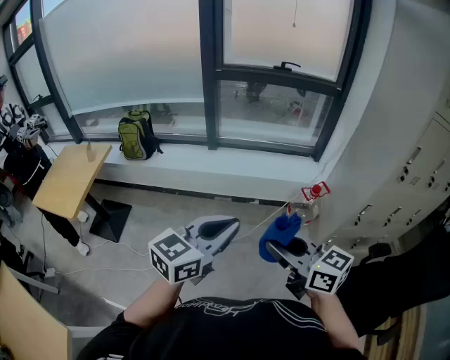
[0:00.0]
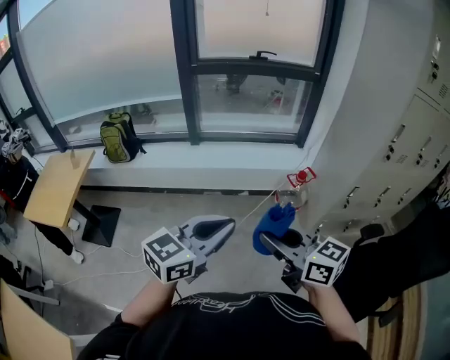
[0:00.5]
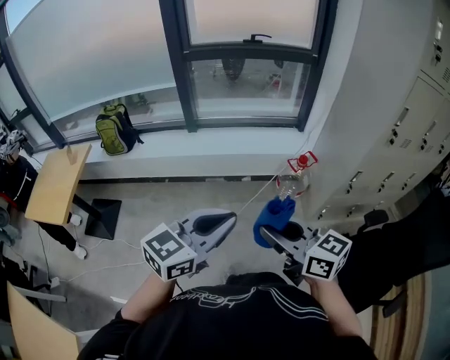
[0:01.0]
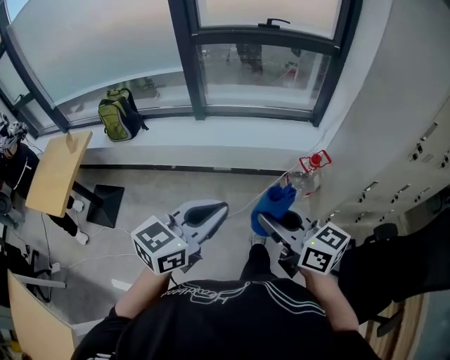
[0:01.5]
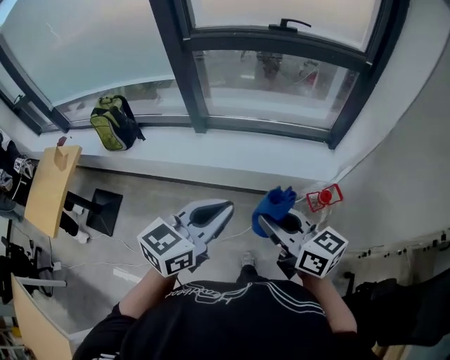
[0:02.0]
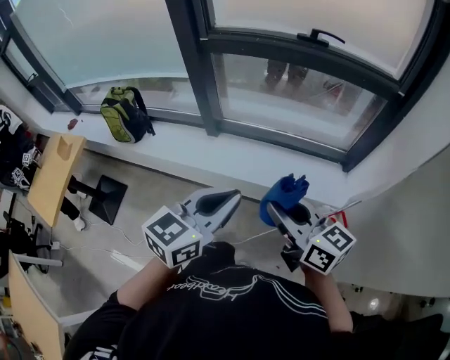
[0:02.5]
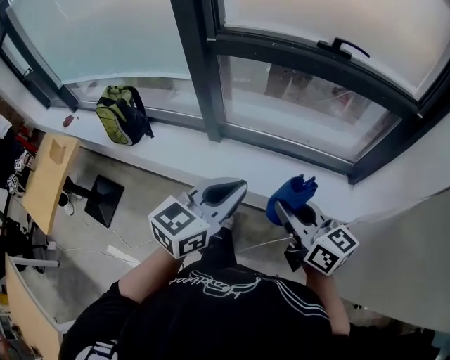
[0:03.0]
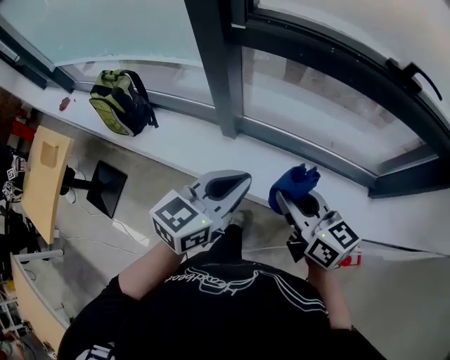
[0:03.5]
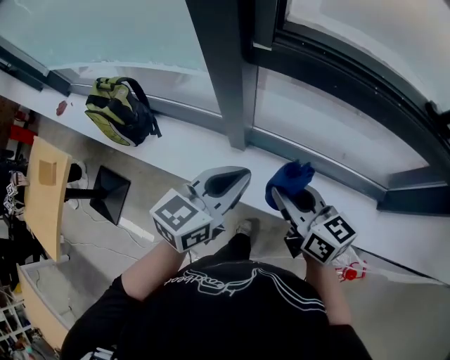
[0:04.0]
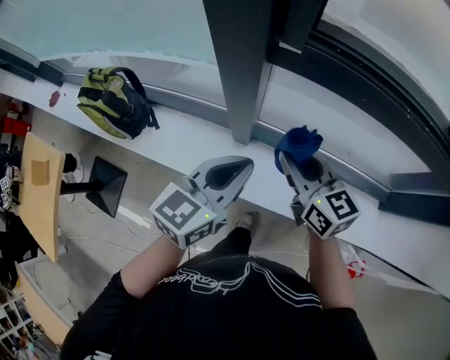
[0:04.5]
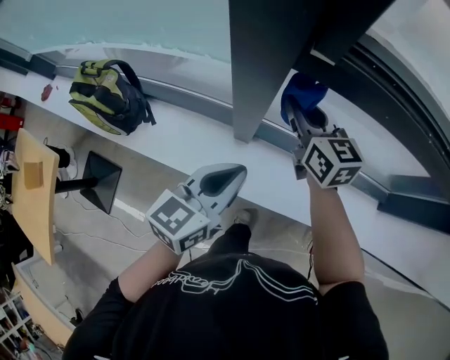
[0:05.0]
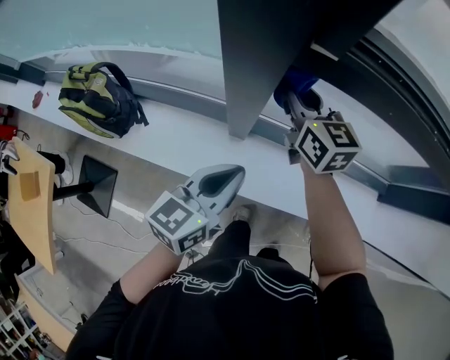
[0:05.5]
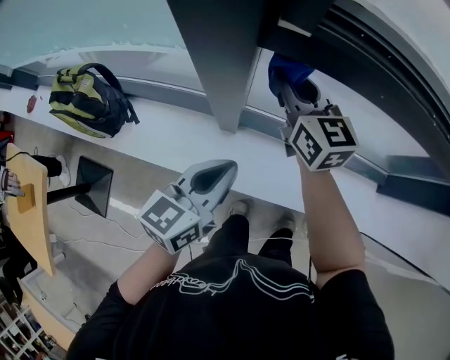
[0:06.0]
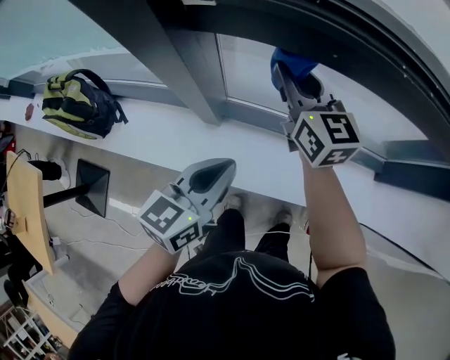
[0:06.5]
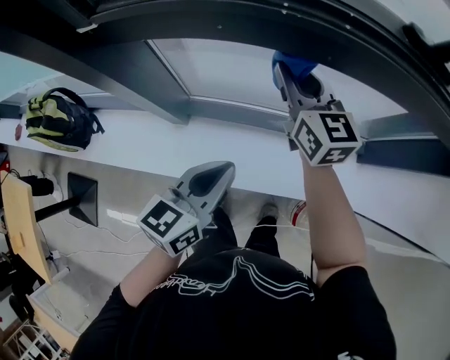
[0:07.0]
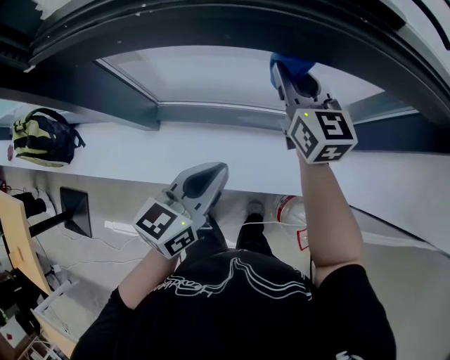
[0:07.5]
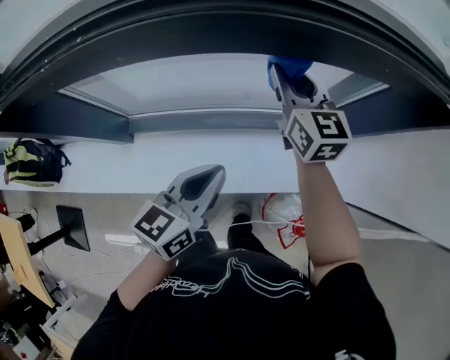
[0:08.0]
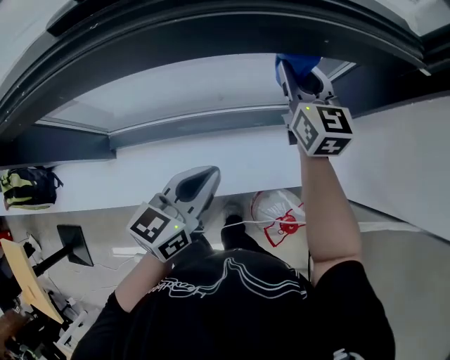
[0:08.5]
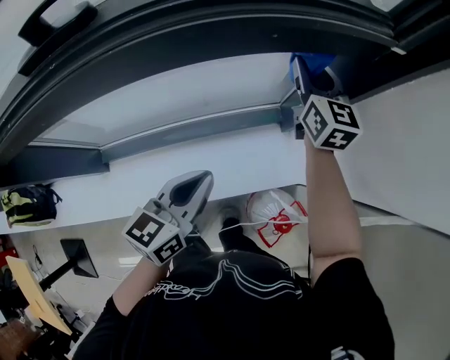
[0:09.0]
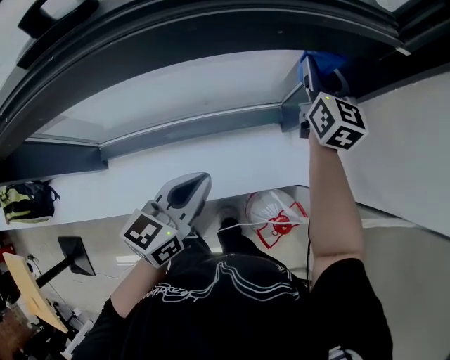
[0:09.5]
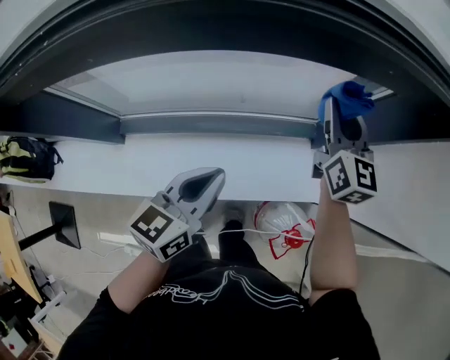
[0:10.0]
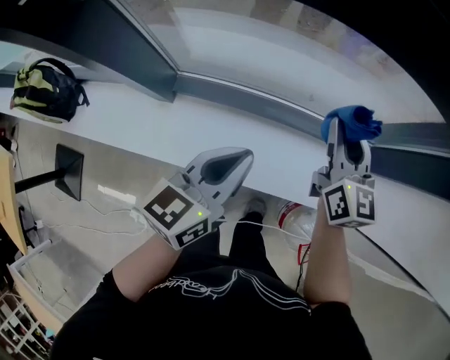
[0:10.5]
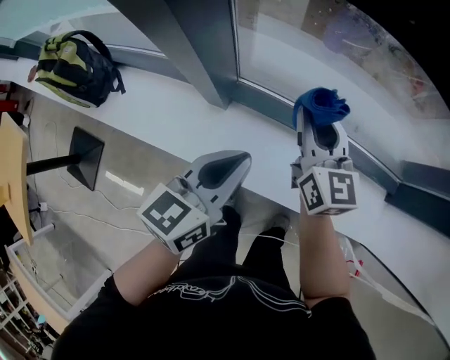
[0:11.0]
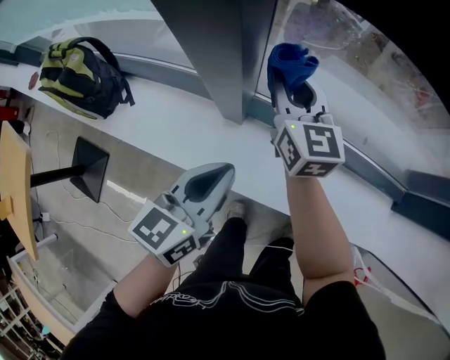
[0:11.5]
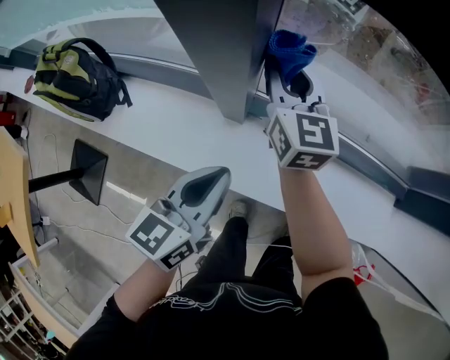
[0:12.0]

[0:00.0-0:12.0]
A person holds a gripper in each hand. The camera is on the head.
0:00.0 to 0:02.0: The grippers both shift forward by some 35 cm.
0:02.0 to 0:04.0: The pair of grippers is taken forward, some 50 cm.
0:04.0 to 0:06.0: The left gripper moves downward and forward, roughly 10 cm; the right gripper moves forward, approximately 25 cm, and swivels some 30 degrees.
0:06.0 to 0:08.0: The pair of grippers is taken to the right, some 50 cm. The right gripper swivels some 20 degrees.
0:08.0 to 0:10.0: The left gripper goes to the right and returns, some 10 cm each way, while the right gripper moves to the right, about 15 cm.
0:10.0 to 0:12.0: The pair of grippers is taken about 60 cm. The right gripper rotates some 30 degrees. Meanwhile the left gripper swivels approximately 20 degrees.

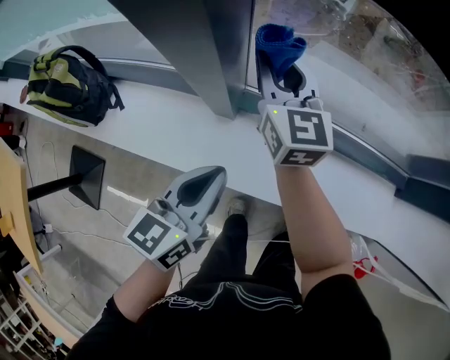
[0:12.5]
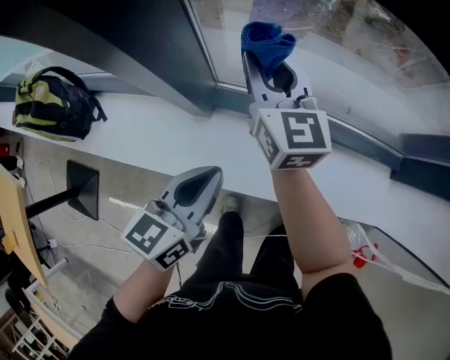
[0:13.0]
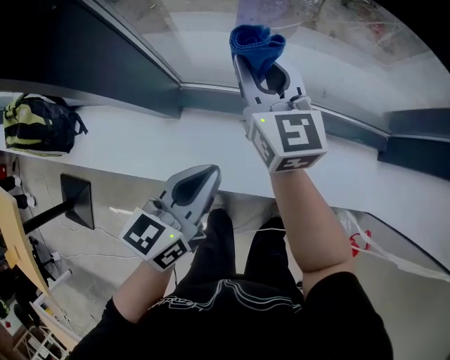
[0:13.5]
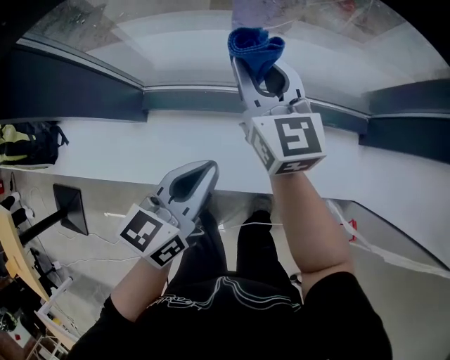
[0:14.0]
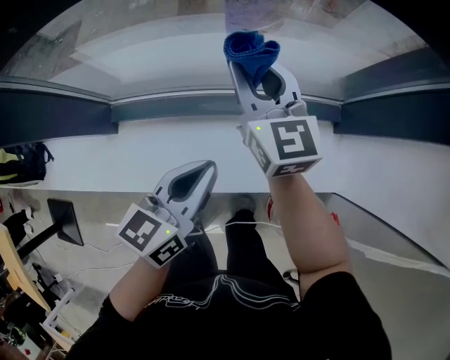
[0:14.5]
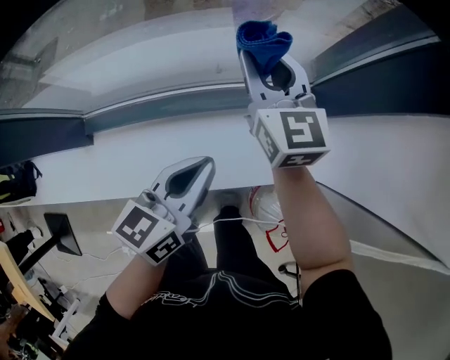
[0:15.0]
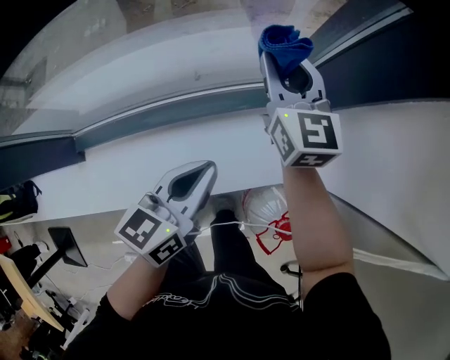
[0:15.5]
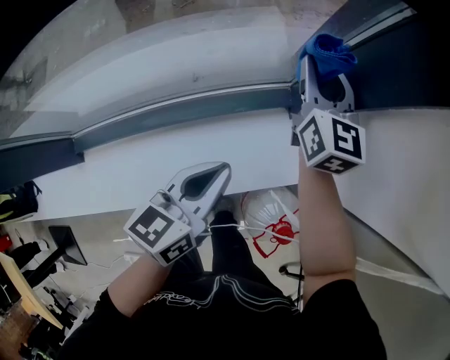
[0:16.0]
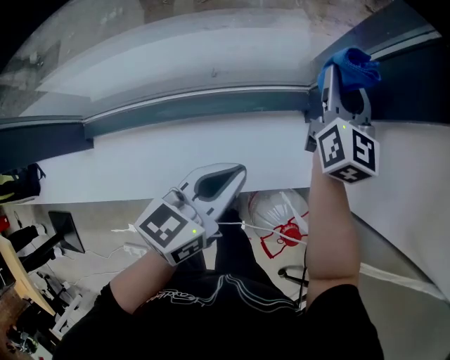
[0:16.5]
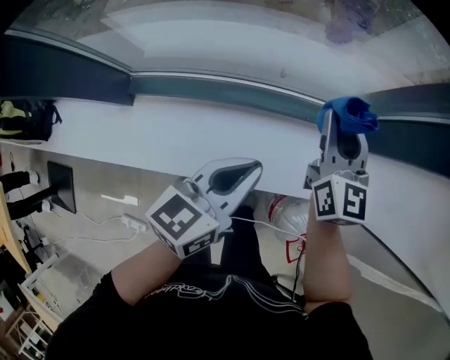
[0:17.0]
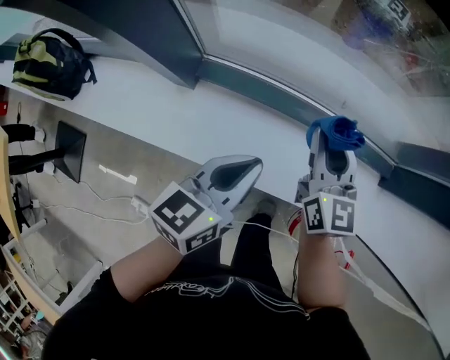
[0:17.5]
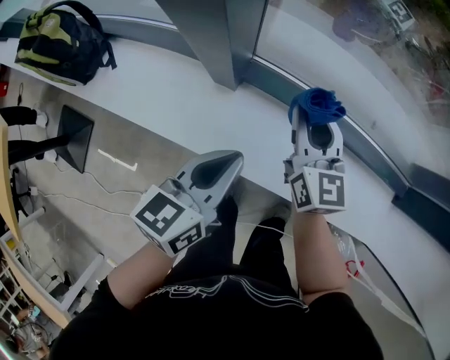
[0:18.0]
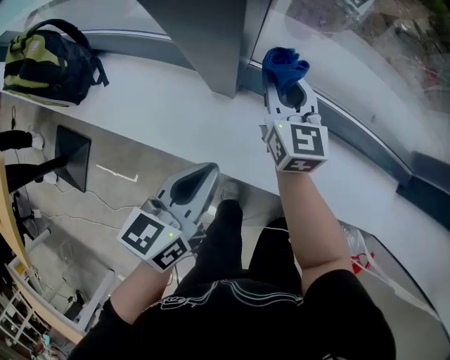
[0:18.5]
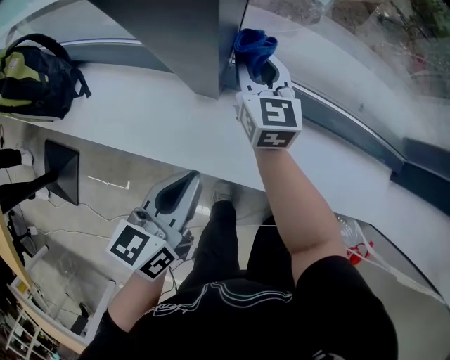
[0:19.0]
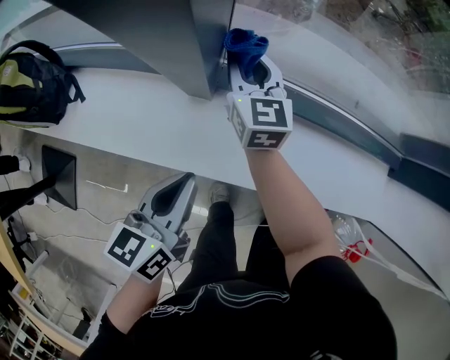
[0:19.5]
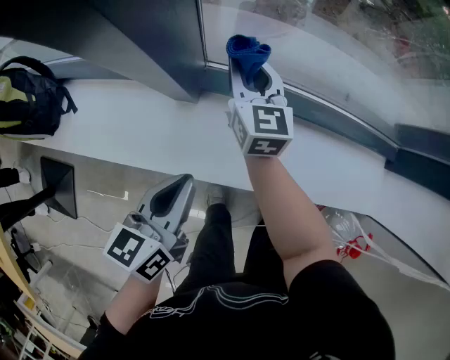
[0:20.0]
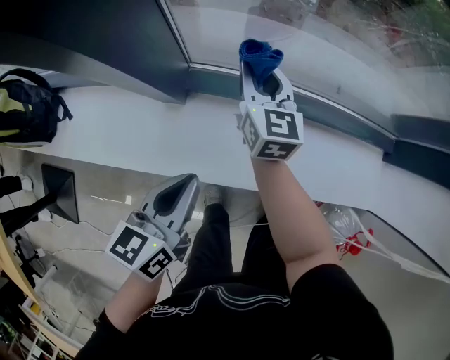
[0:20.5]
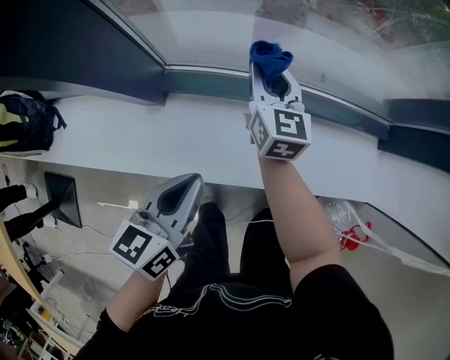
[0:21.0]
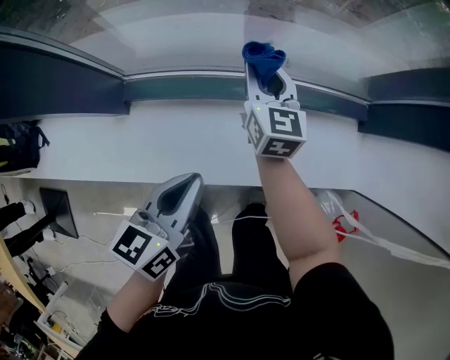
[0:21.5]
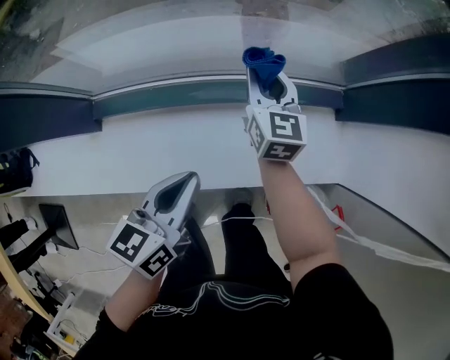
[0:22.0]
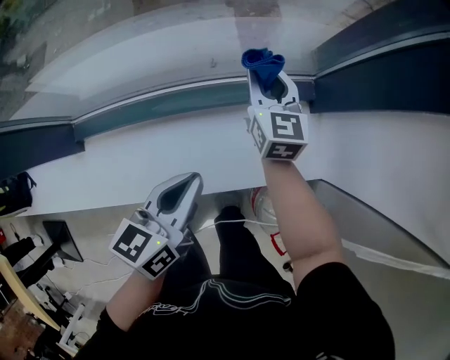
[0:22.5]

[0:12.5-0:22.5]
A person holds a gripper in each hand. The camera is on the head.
0:12.5 to 0:14.5: The two grippers go some 40 cm to the right.
0:14.5 to 0:16.5: The left gripper heads to the right, covering about 20 cm, while the right gripper is displaced to the right by about 35 cm, and swivels roughly 30 degrees.
0:16.5 to 0:18.5: The pair of grippers is taken about 70 cm. The left gripper changes its angle by about 40 degrees, while the right gripper changes its angle by roughly 40 degrees.
0:18.5 to 0:20.5: Both grippers travel together to the right, approximately 10 cm.
0:20.5 to 0:22.5: The two grippers travel together, to the right, about 50 cm.

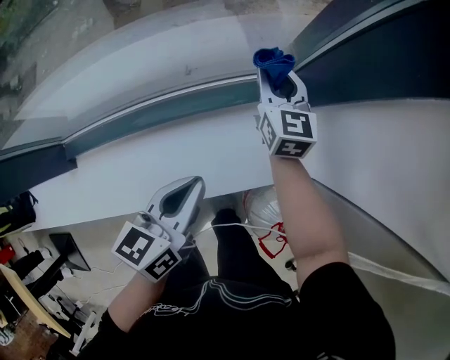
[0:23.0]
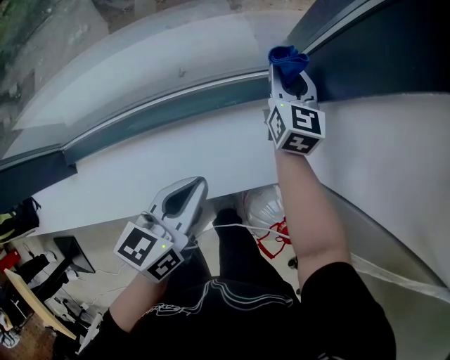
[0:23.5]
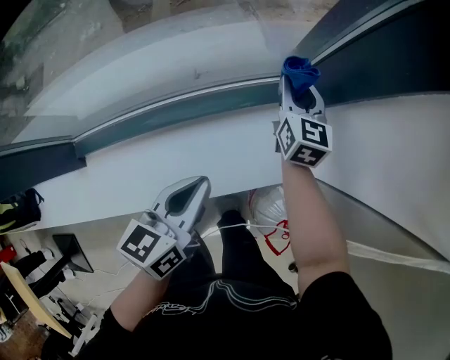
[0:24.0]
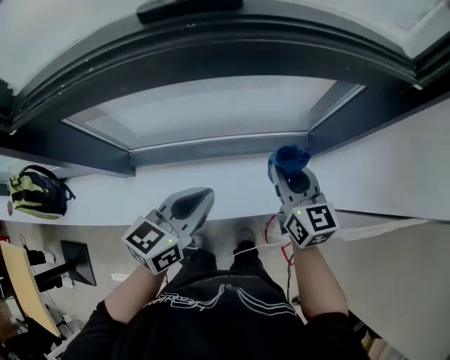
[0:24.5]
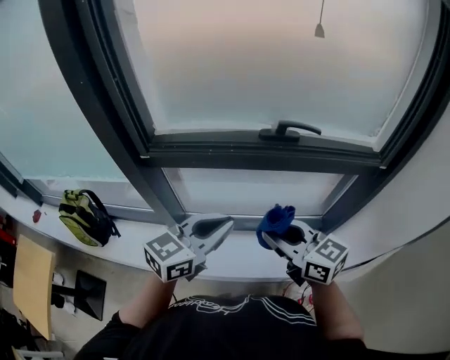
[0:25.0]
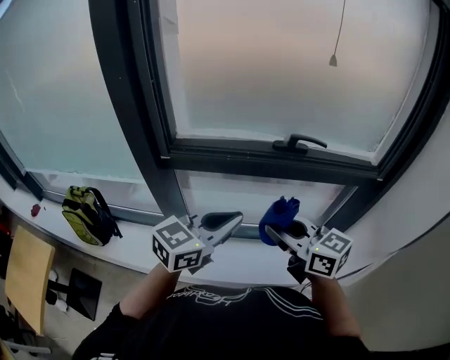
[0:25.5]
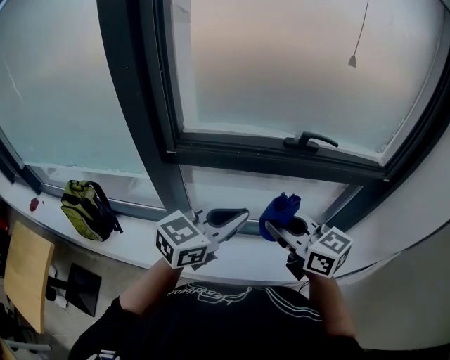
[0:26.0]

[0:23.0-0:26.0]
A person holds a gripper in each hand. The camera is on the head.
0:23.0 to 0:24.5: The right gripper travels backward and upward by approximately 30 cm, while the left gripper shifts about 25 cm upward, to the left and backward.
0:24.5 to 0:26.0: The right gripper travels upward, to the left and backward by approximately 40 cm, and rotates approximately 40 degrees. Meanwhile the left gripper goes some 30 cm upward and to the left, and changes its angle by roughly 20 degrees.

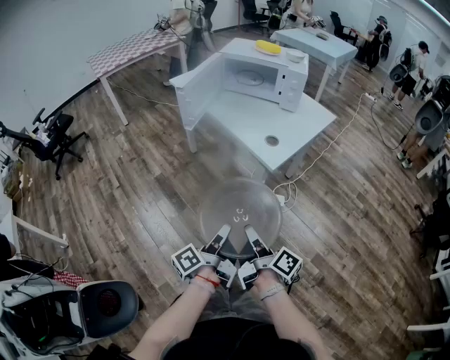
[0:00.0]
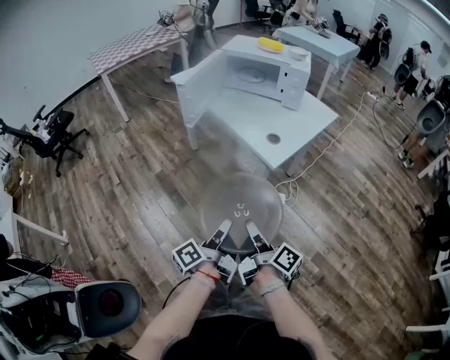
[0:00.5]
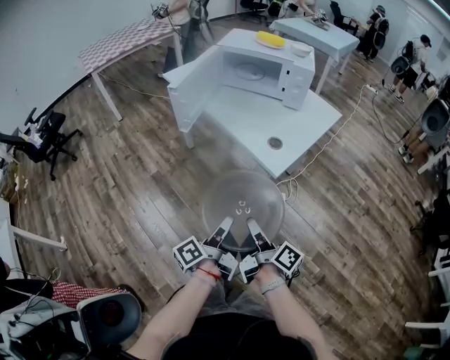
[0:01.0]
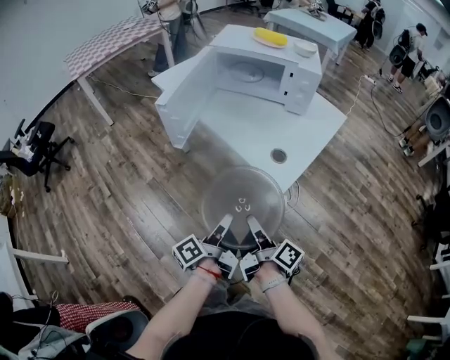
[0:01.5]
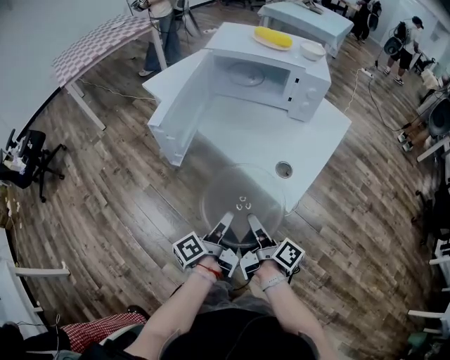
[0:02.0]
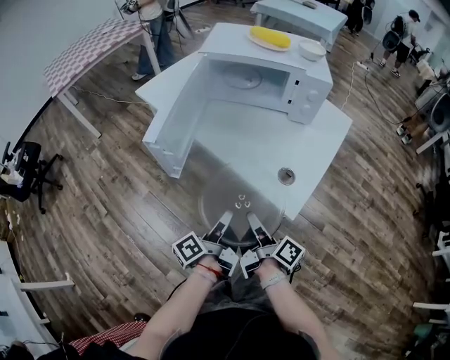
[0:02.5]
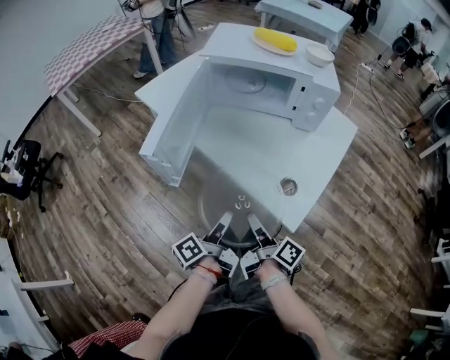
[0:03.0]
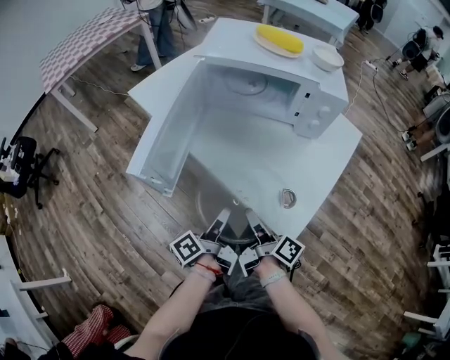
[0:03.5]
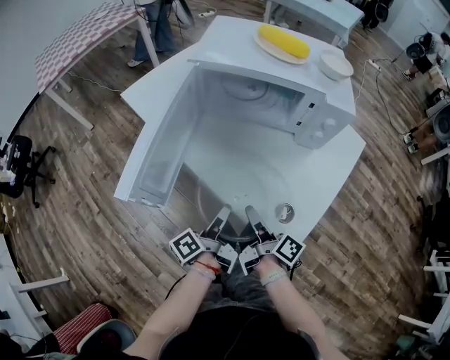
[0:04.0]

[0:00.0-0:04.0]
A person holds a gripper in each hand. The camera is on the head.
0:00.0 to 0:02.0: The right gripper ends up some 25 cm from where it was.
0:02.0 to 0:04.0: The right gripper ends up roughly 20 cm from where it was.
